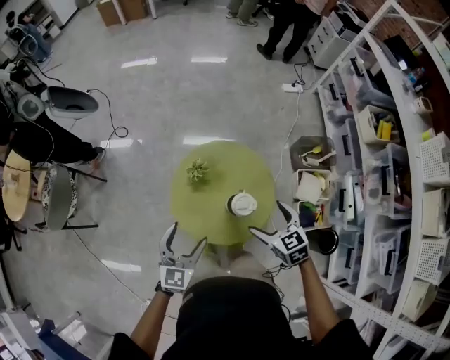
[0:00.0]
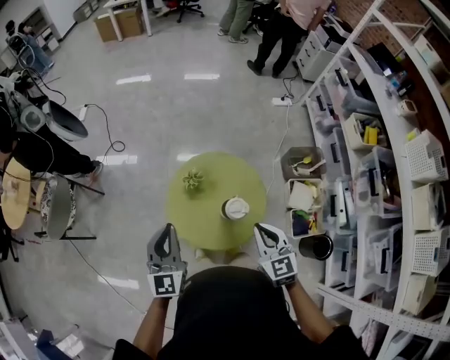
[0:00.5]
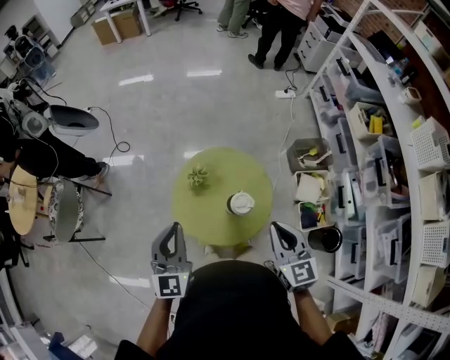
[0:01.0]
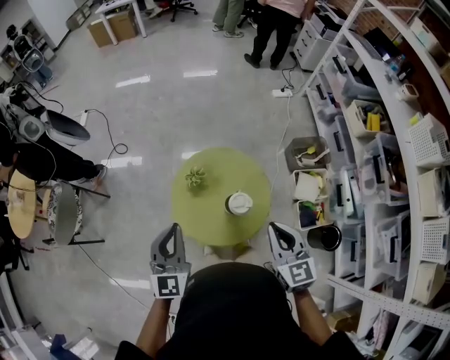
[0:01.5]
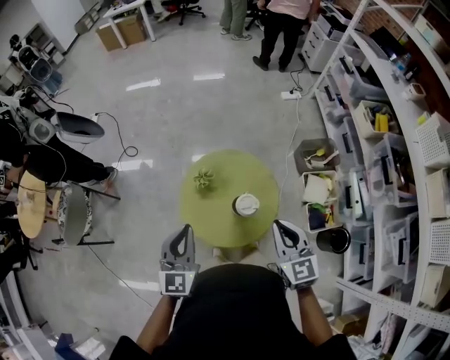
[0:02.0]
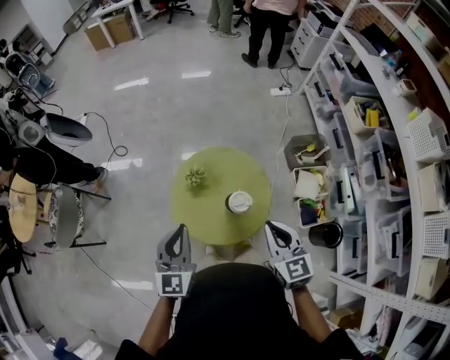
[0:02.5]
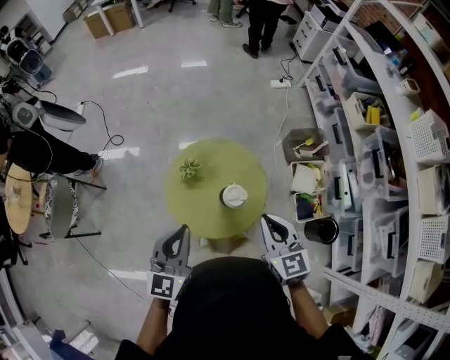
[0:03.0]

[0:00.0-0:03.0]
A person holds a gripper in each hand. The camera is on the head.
0:00.0 to 0:01.5: The right gripper goes roughly 15 cm upward and backward, changes its angle by some 30 degrees, and closes up, while the left gripper travels upward by some 15 cm, and closes its fingers.
0:01.5 to 0:03.0: There are only small adjustments of the grippers.

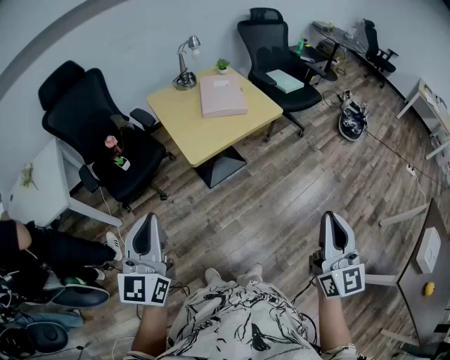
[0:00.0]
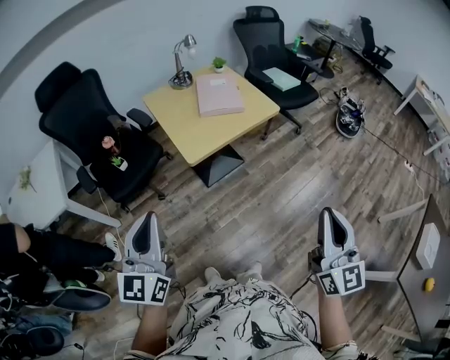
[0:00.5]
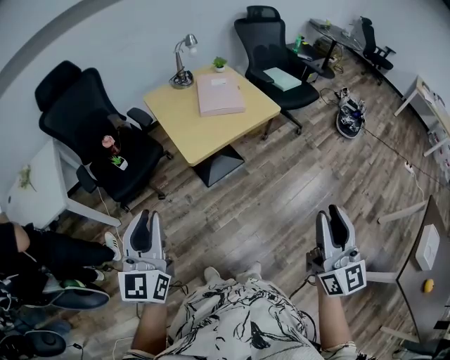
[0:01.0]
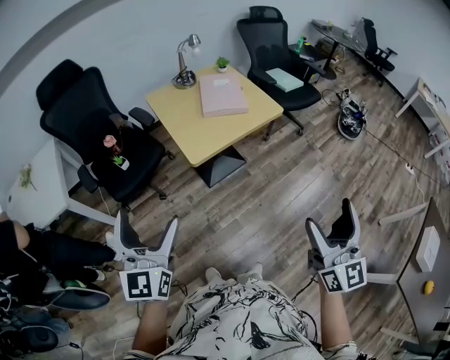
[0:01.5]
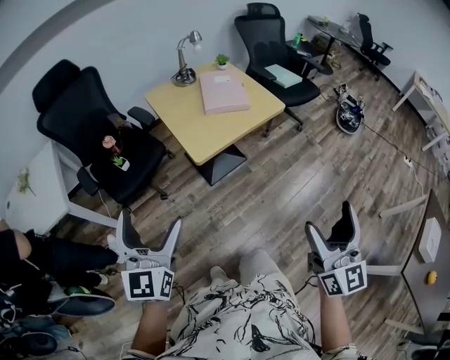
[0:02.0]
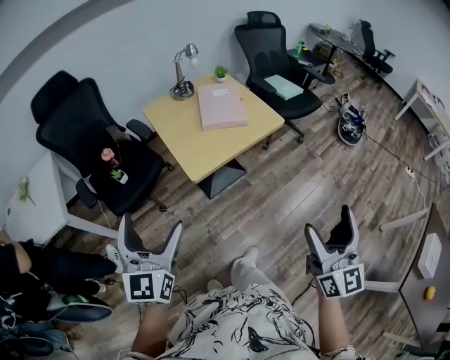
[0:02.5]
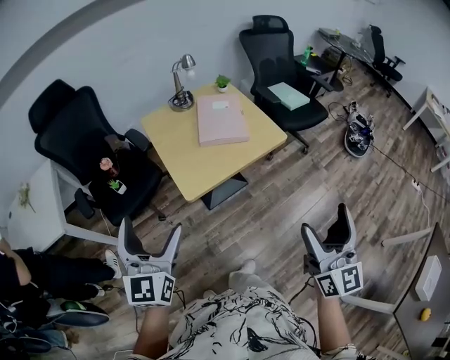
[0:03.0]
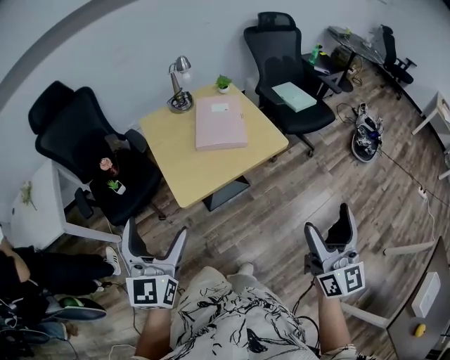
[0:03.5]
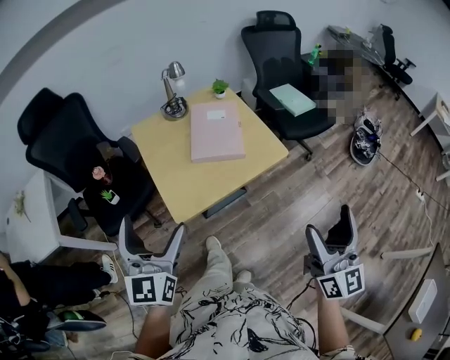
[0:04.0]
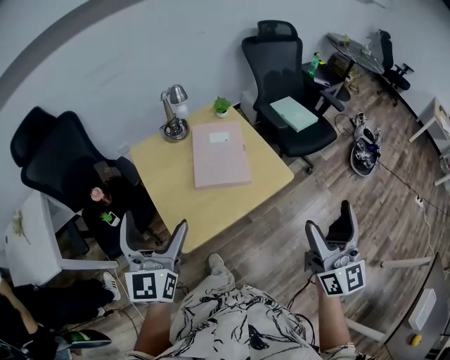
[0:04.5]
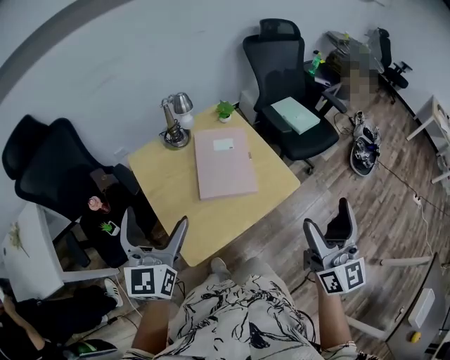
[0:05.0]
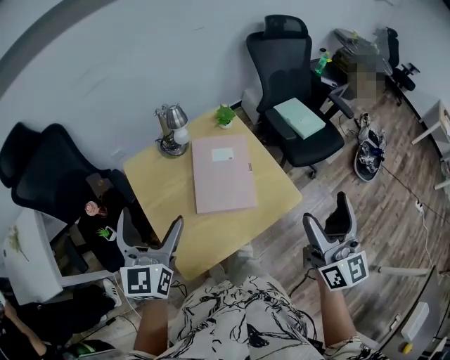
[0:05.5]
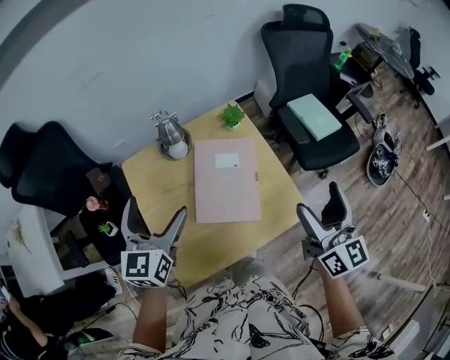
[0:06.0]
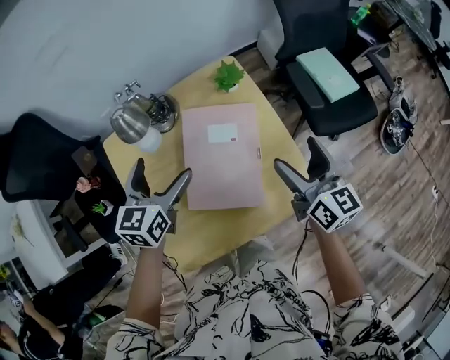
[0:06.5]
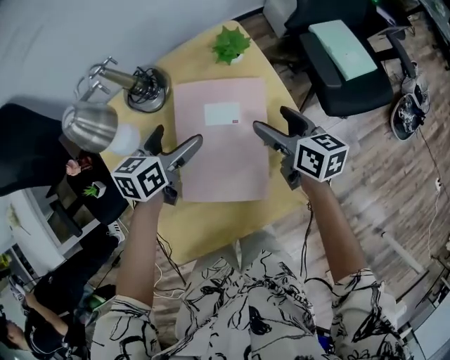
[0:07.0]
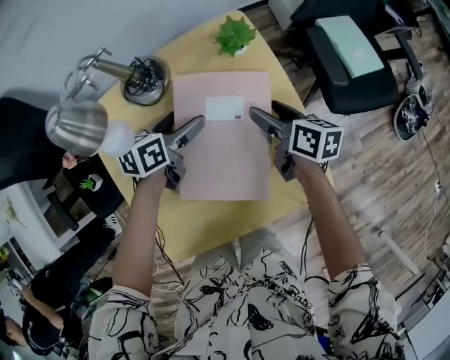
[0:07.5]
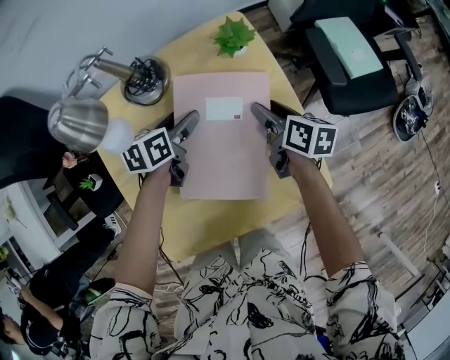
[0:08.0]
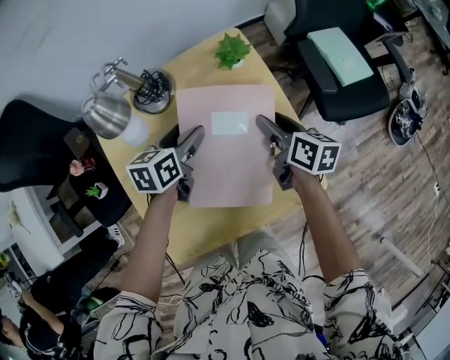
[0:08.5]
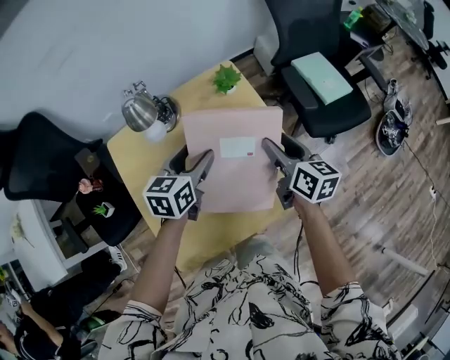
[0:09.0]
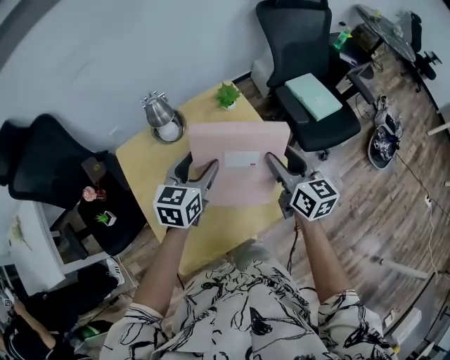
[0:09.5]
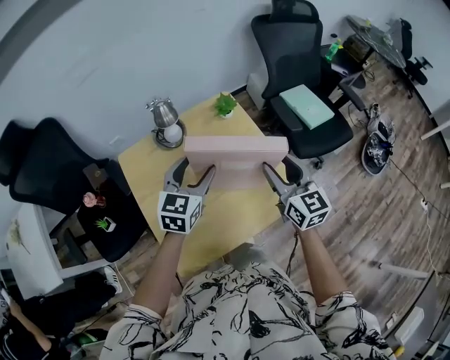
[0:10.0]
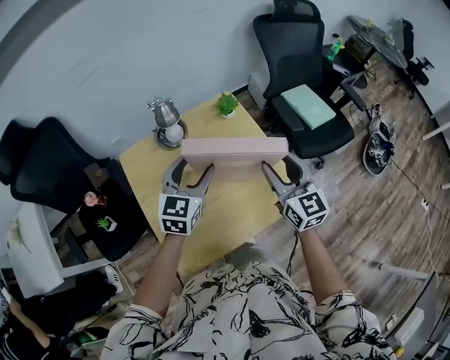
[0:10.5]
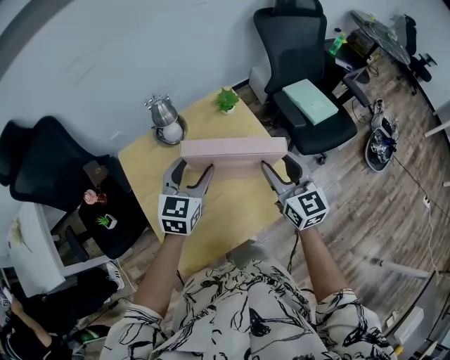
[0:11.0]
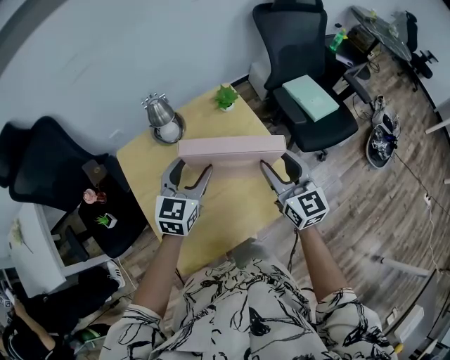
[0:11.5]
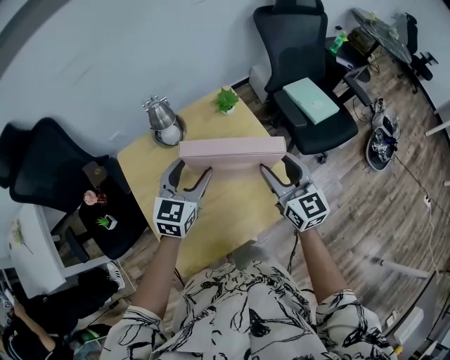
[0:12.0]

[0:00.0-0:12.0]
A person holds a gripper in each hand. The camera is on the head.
0:00.0 to 0:02.0: The right gripper heads to the left, covering roughly 5 cm, and opens its fingers. Meanwhile the left gripper changes place by about 5 cm, and opens its fingers.
0:02.0 to 0:04.0: The two grippers go roughly 30 cm forward and to the right.
0:04.0 to 0:06.0: The two grippers go some 40 cm forward.
0:06.0 to 0:08.0: The grippers both shift downward and forward by roughly 35 cm. The right gripper tips its fingers downward by approximately 30 degrees, and closes. Meanwhile the left gripper rotates some 50 degrees, and closes.
0:08.0 to 0:10.0: Both grippers travel together upward and backward, roughly 30 cm. The right gripper swivels roughly 50 degrees. The left gripper rolls clockwise, seen from behind, by approximately 40 degrees.
0:10.0 to 0:12.0: The grippers stay close to where they were, moving slightly.

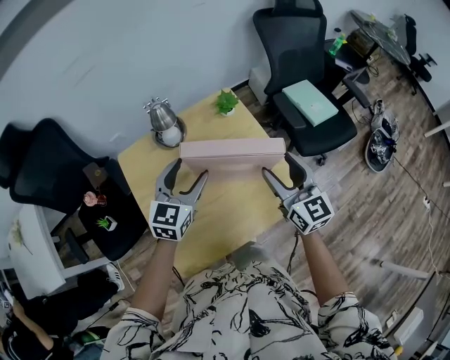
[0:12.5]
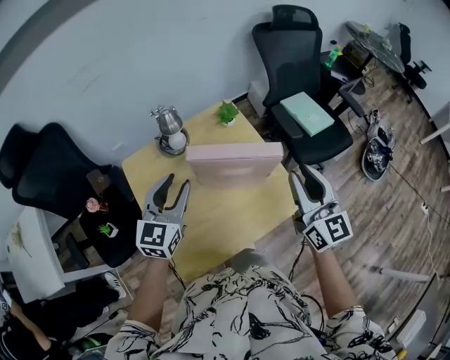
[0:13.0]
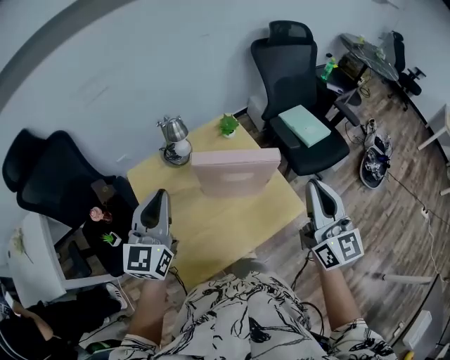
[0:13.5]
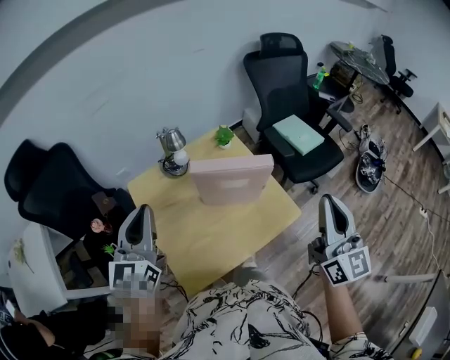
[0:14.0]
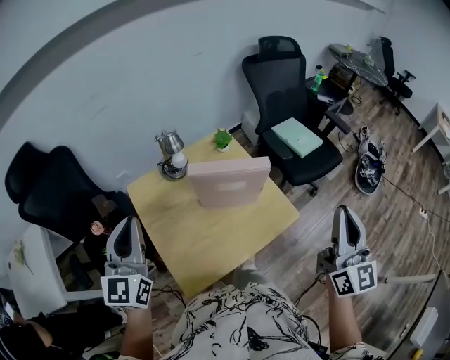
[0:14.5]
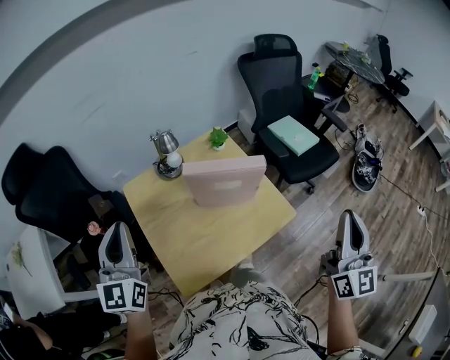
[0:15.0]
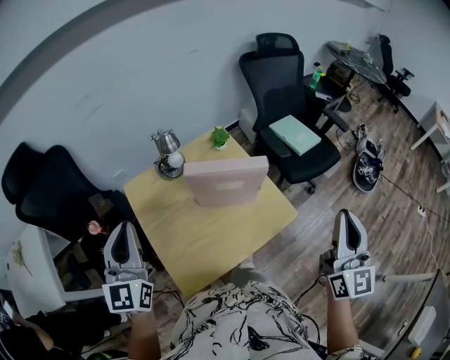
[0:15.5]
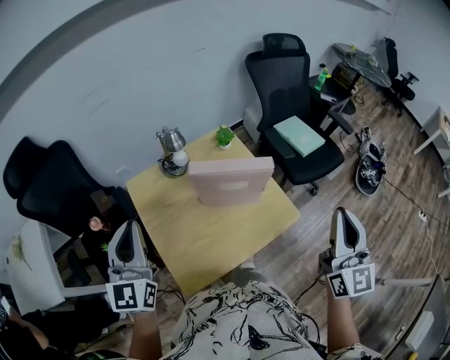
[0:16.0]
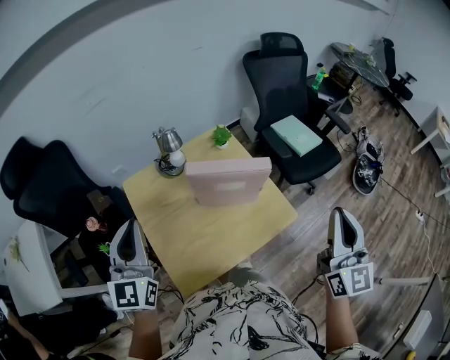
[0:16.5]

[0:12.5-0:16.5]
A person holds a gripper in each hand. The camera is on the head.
0:12.5 to 0:14.5: The left gripper shifts some 25 cm upward, backward and to the left, swivels approximately 20 degrees, and closes. The right gripper is displaced upward, backward and to the right by about 30 cm, rotates some 30 degrees, and closes up.
0:14.5 to 0:16.5: The grippers move only a little.

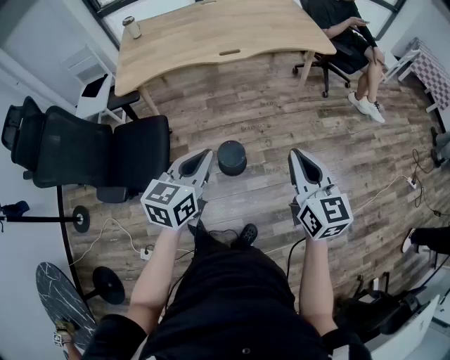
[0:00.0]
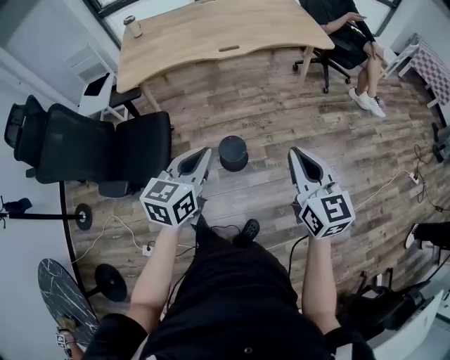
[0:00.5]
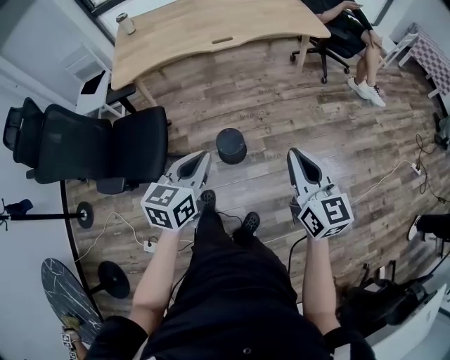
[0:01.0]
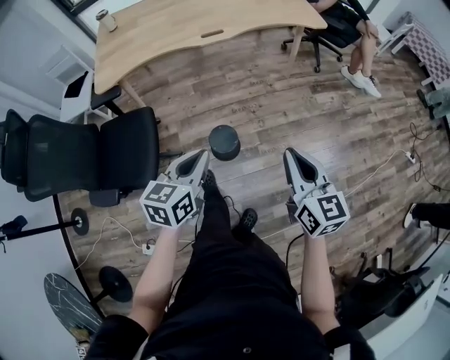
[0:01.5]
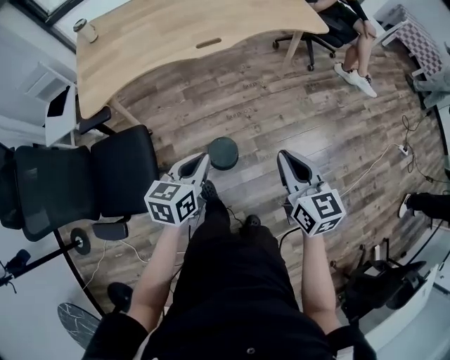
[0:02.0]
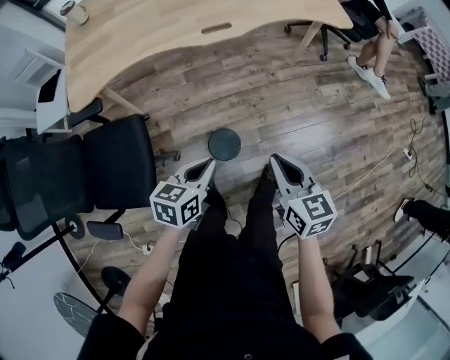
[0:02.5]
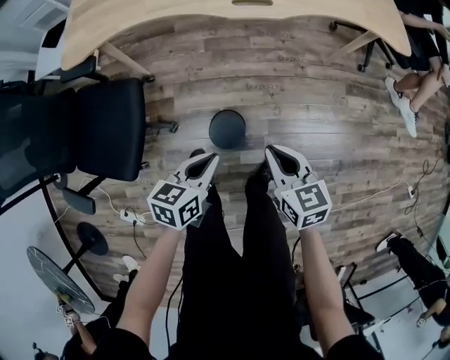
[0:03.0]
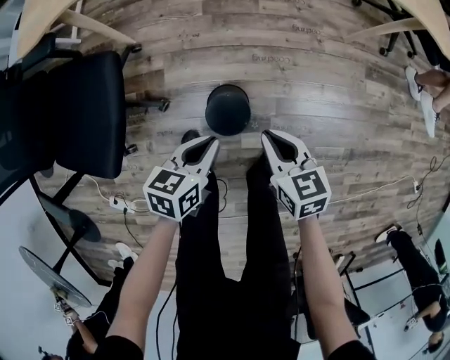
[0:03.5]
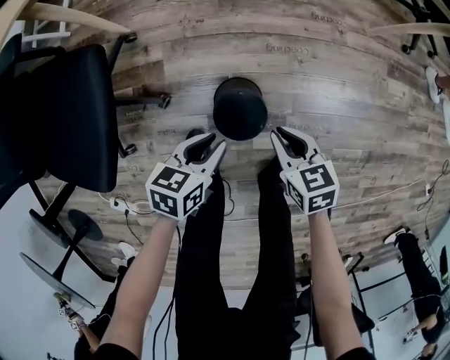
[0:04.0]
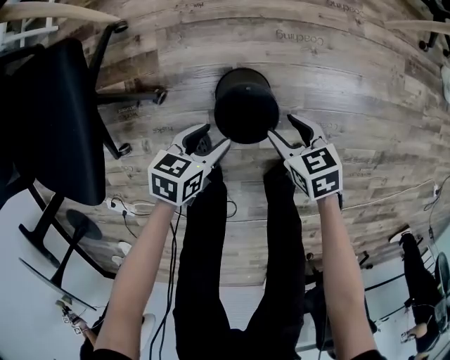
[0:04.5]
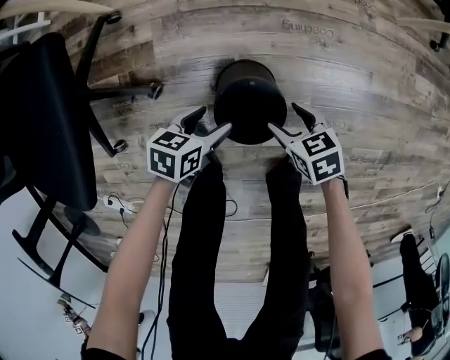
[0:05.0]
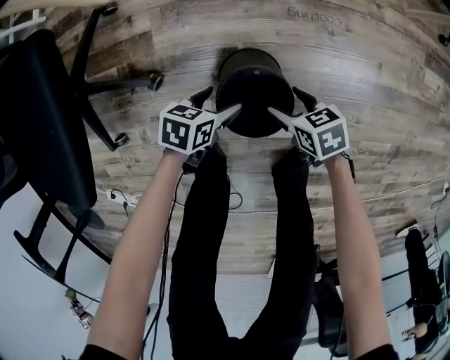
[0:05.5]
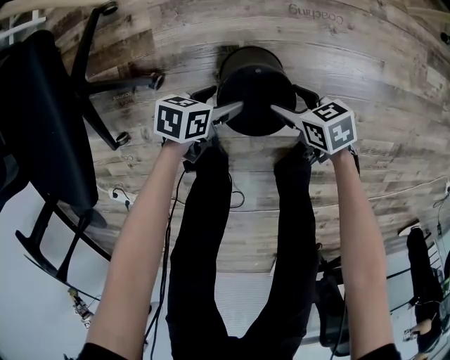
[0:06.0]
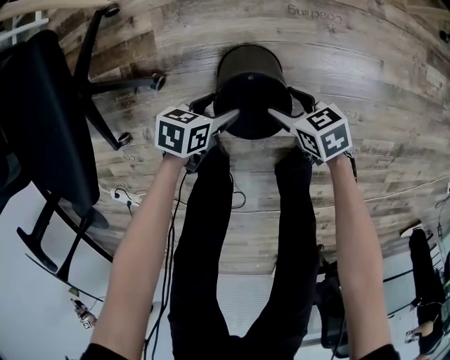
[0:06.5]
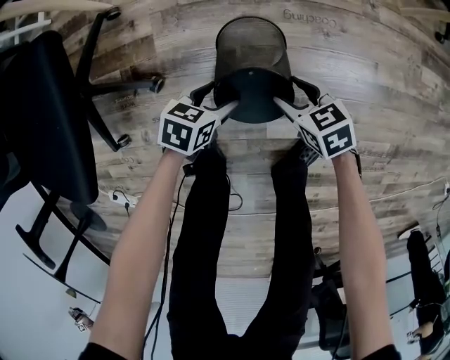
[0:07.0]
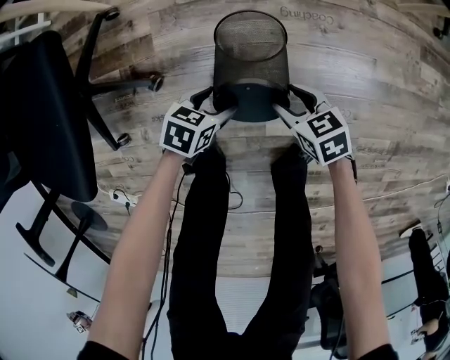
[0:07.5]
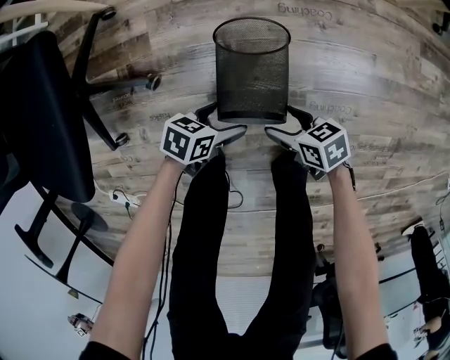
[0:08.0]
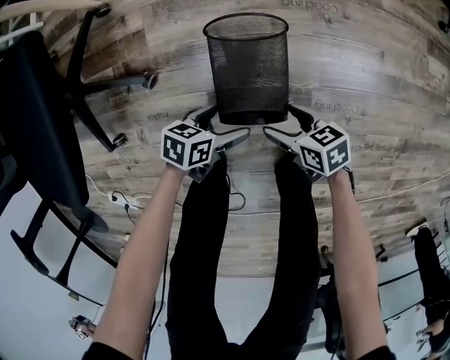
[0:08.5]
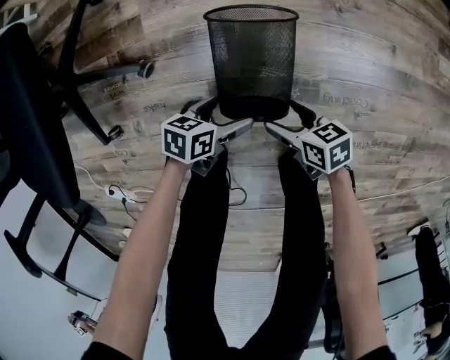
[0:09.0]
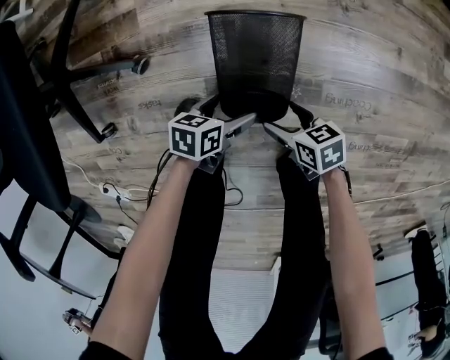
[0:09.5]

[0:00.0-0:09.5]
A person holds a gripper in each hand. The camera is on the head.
0:00.0 to 0:02.0: The left gripper heads forward and downward, covering about 15 cm; the right gripper goes approximately 15 cm forward, downward and to the left.
0:02.0 to 0:04.0: The two grippers go roughly 40 cm downward. The left gripper swivels approximately 30 degrees. Meanwhile the right gripper rotates approximately 40 degrees.
0:04.0 to 0:05.5: The grippers both shift downward by some 25 cm. The right gripper opens its fingers. Meanwhile the left gripper opens up.
0:05.5 to 0:07.5: The grippers stay close to where they were, moving slightly.
0:07.5 to 0:09.5: The left gripper ends up roughly 15 cm from where it was, and swivels roughly 20 degrees. The right gripper ends up about 15 cm from where it was, and swivels some 20 degrees.
